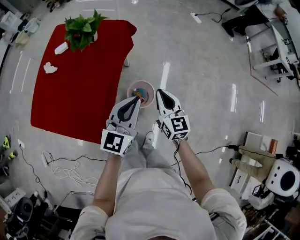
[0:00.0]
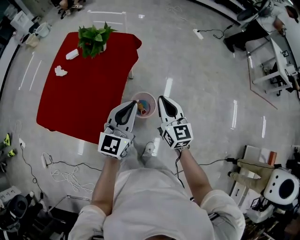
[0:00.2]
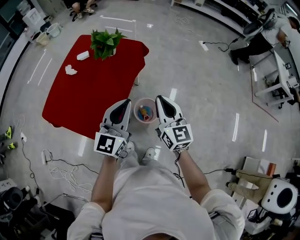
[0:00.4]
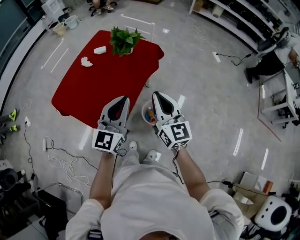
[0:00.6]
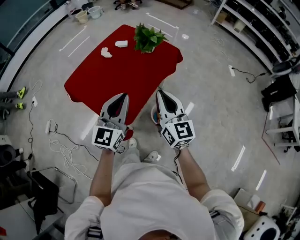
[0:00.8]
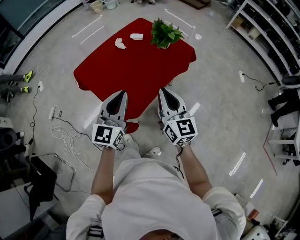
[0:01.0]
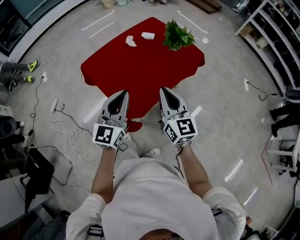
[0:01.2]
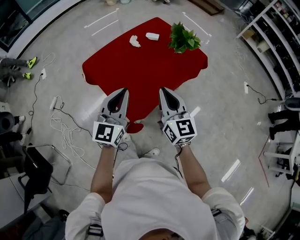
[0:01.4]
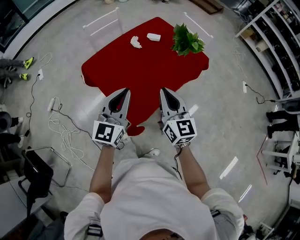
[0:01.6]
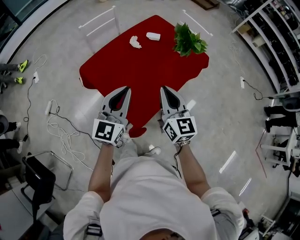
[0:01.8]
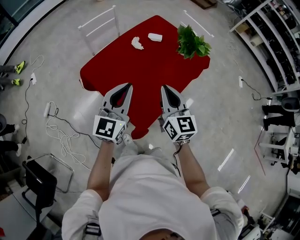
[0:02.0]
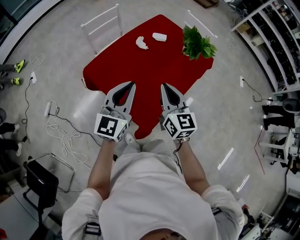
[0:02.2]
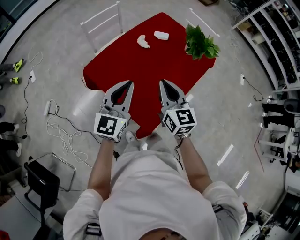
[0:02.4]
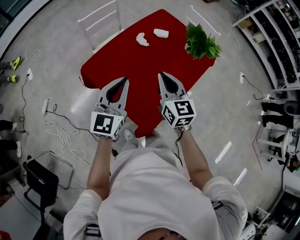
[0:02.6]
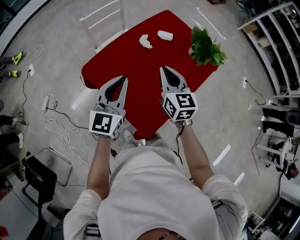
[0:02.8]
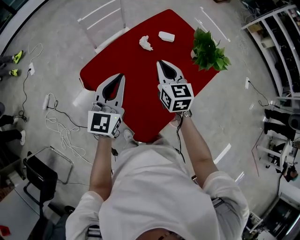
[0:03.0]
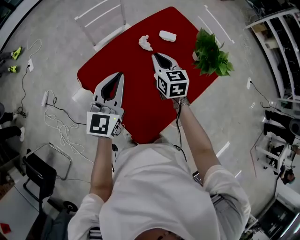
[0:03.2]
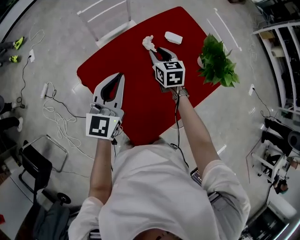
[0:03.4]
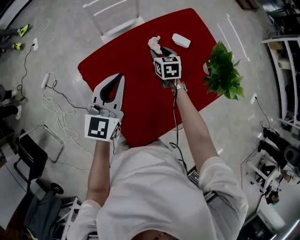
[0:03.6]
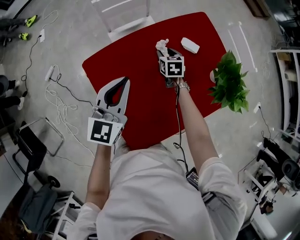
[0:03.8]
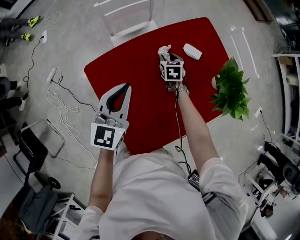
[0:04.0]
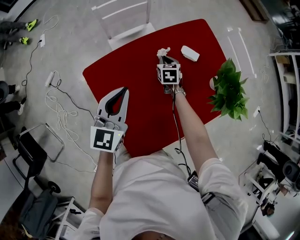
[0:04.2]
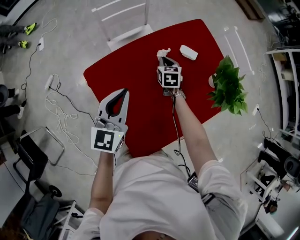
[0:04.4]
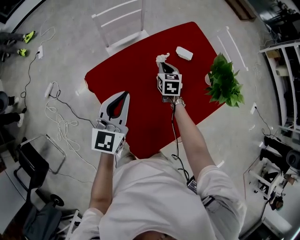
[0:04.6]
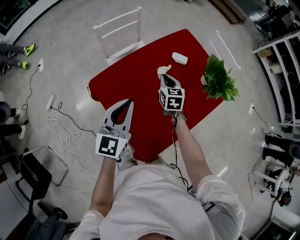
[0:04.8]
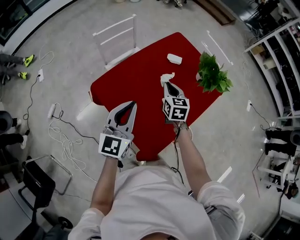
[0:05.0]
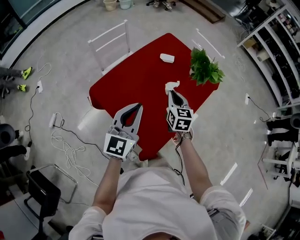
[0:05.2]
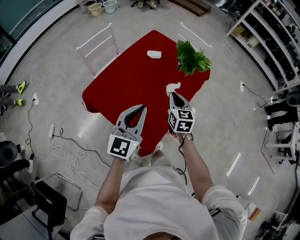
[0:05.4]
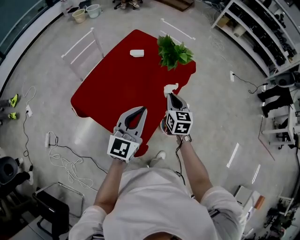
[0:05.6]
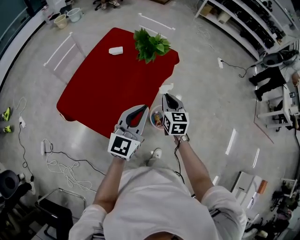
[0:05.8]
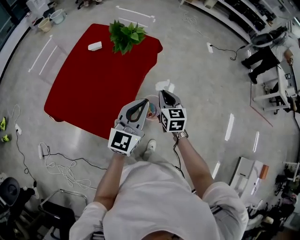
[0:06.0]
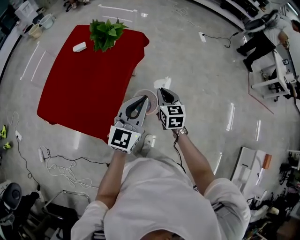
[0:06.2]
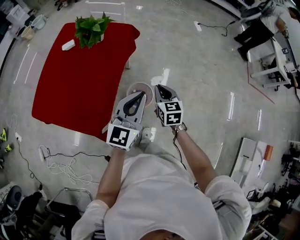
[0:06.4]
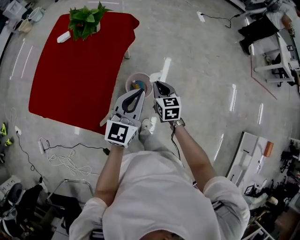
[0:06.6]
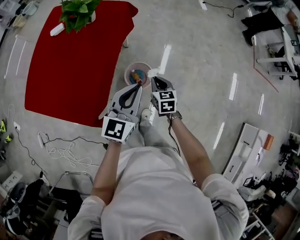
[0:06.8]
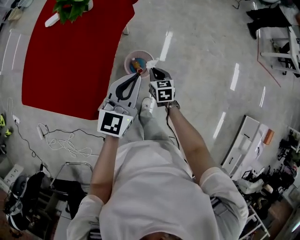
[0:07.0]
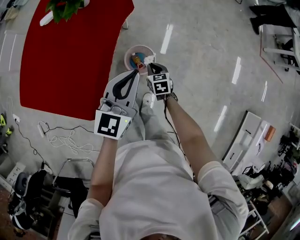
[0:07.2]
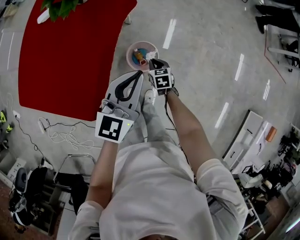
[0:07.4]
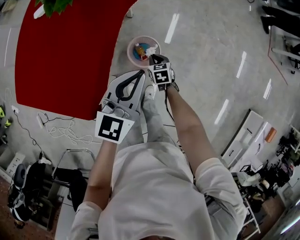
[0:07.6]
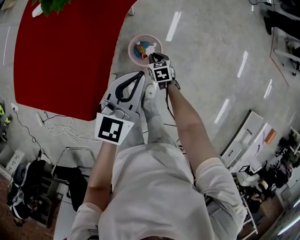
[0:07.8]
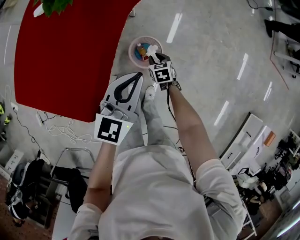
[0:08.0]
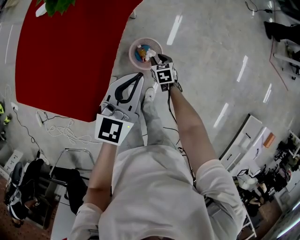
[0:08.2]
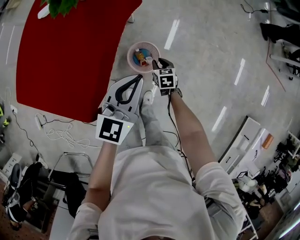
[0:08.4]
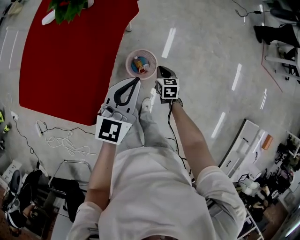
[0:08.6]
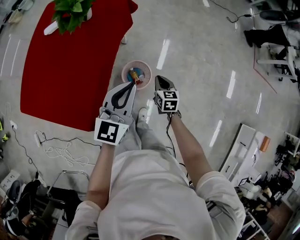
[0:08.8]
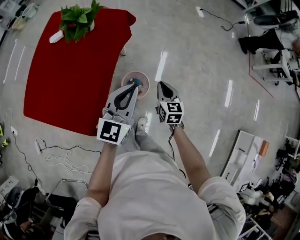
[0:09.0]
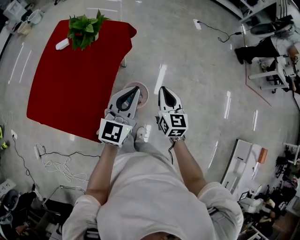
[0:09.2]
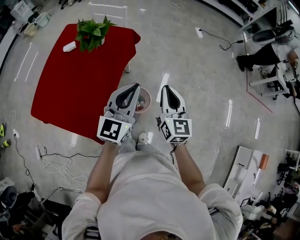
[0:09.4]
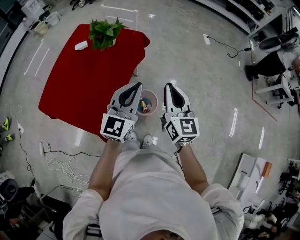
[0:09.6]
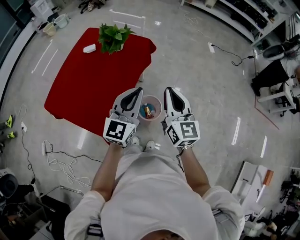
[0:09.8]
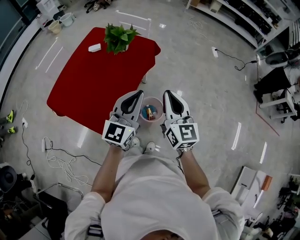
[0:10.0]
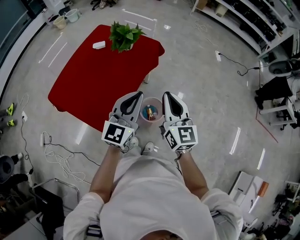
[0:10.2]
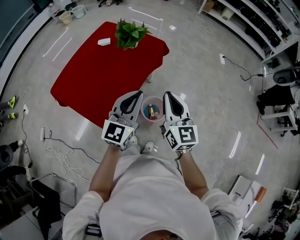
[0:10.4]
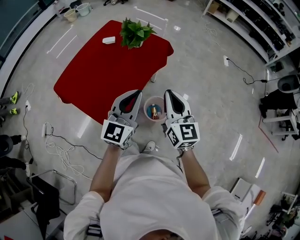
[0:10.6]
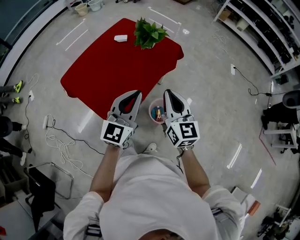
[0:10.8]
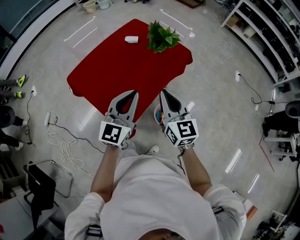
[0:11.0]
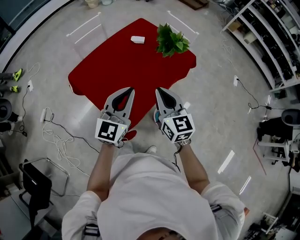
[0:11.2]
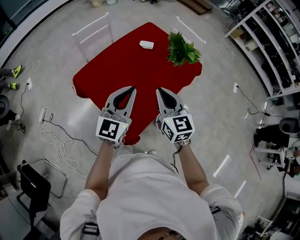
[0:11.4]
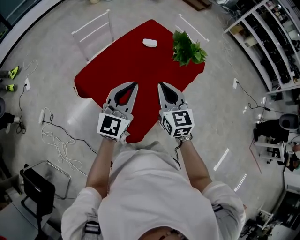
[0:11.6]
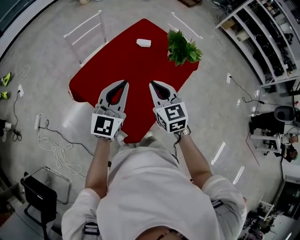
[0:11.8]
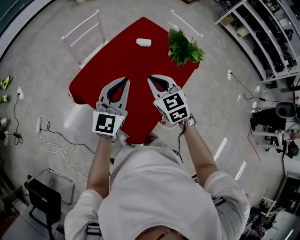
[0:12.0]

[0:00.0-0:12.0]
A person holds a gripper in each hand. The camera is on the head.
0:00.0 to 0:01.6: The left gripper shifts by approximately 35 cm, and turns by approximately 40 degrees. Meanwhile the right gripper shifts by some 35 cm, and rotates some 40 degrees.
0:01.6 to 0:03.0: Both grippers travel together forward and to the left, some 25 cm.
0:03.0 to 0:04.4: The right gripper shifts roughly 30 cm downward and forward, changes its angle by about 20 degrees, and opens, then closes once more, while the left gripper shifts about 10 cm forward and downward.
0:04.4 to 0:06.0: The two grippers travel together, about 50 cm. The left gripper swivels about 50 degrees. Meanwhile the right gripper rotates some 40 degrees.
0:06.0 to 0:07.6: The right gripper moves downward, approximately 35 cm, and rotates approximately 30 degrees, while the left gripper heads downward, to the right and forward, covering roughly 20 cm.
0:07.6 to 0:09.0: The left gripper is displaced upward by roughly 10 cm. Meanwhile the right gripper moves upward, about 25 cm, turns by roughly 30 degrees, and opens, then closes again.
0:09.0 to 0:10.4: The left gripper is displaced upward, to the left and backward by roughly 15 cm; the right gripper moves upward, roughly 25 cm, and swivels approximately 30 degrees.
0:10.4 to 0:12.0: The grippers both shift to the left and forward by about 40 cm. The right gripper swivels some 40 degrees.

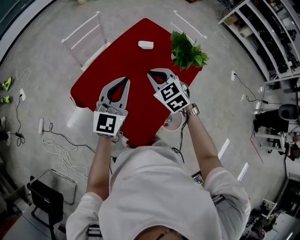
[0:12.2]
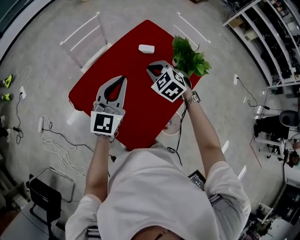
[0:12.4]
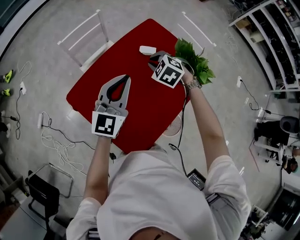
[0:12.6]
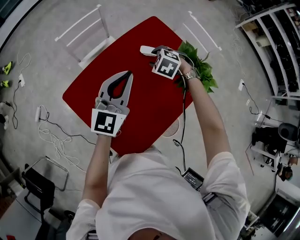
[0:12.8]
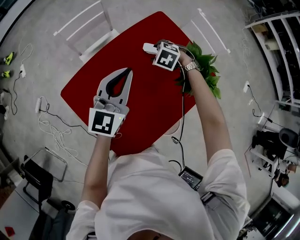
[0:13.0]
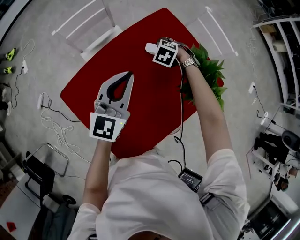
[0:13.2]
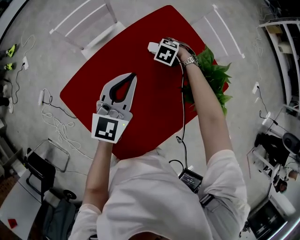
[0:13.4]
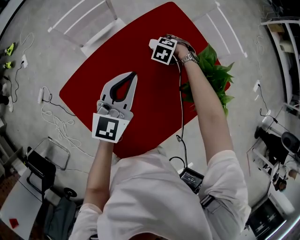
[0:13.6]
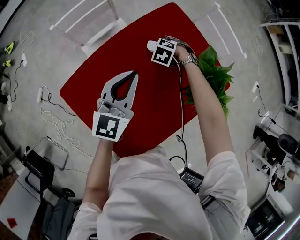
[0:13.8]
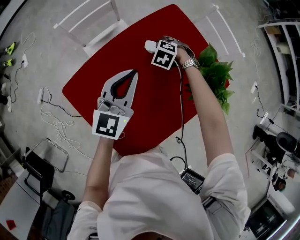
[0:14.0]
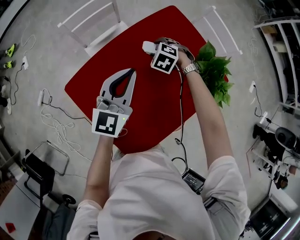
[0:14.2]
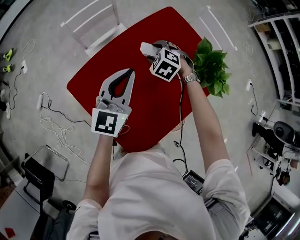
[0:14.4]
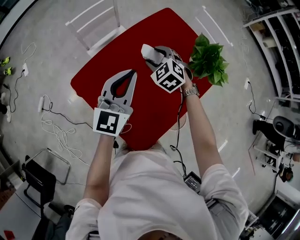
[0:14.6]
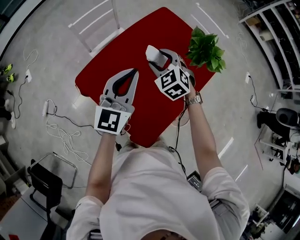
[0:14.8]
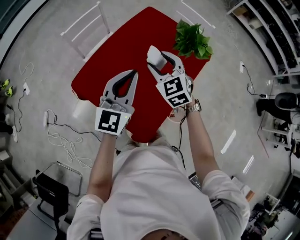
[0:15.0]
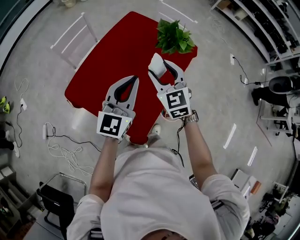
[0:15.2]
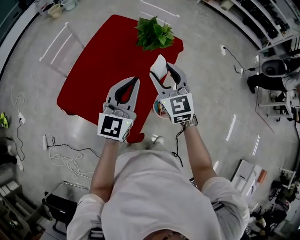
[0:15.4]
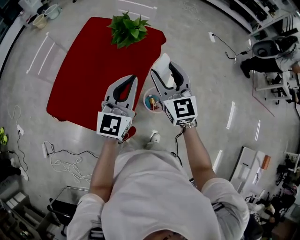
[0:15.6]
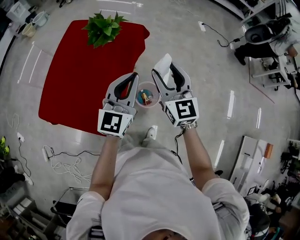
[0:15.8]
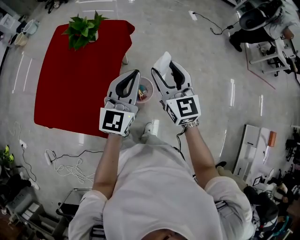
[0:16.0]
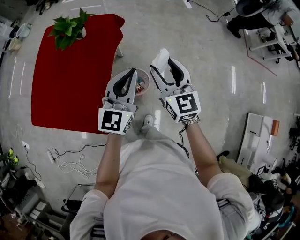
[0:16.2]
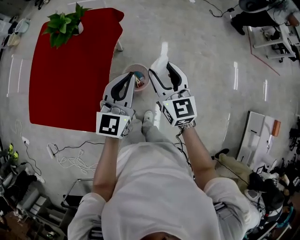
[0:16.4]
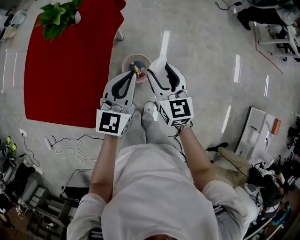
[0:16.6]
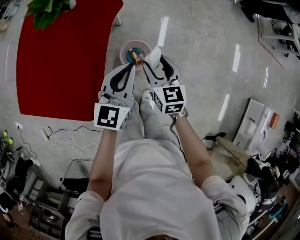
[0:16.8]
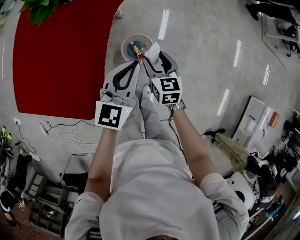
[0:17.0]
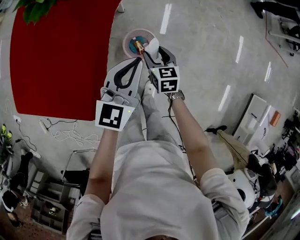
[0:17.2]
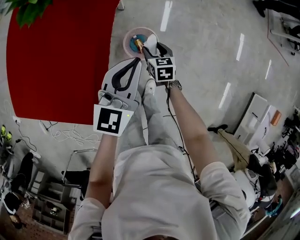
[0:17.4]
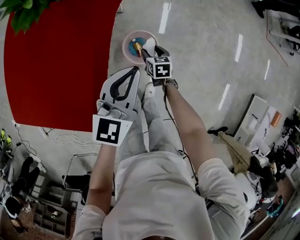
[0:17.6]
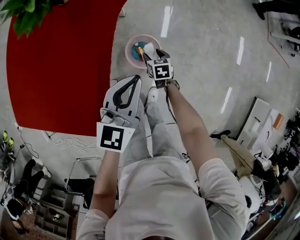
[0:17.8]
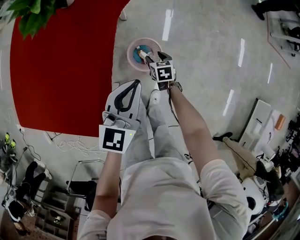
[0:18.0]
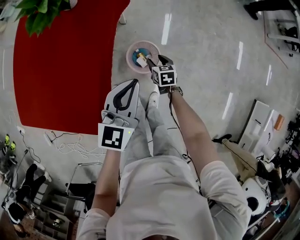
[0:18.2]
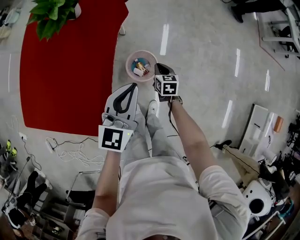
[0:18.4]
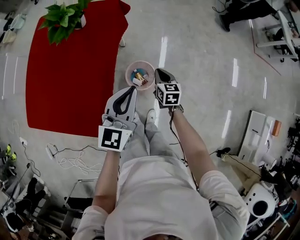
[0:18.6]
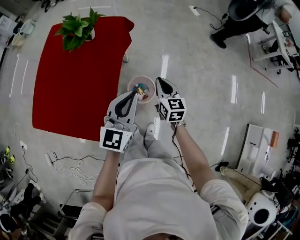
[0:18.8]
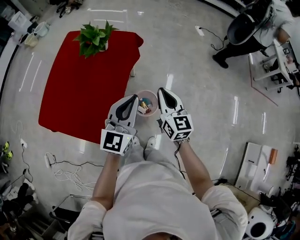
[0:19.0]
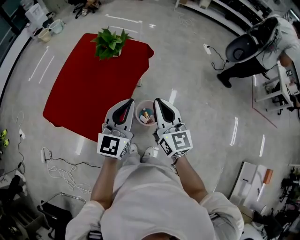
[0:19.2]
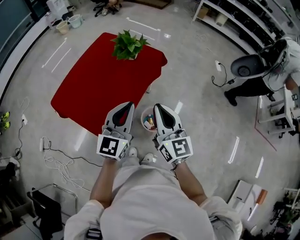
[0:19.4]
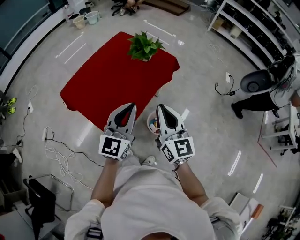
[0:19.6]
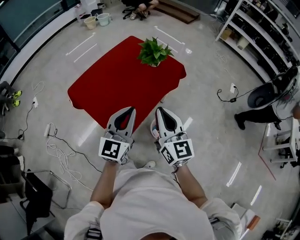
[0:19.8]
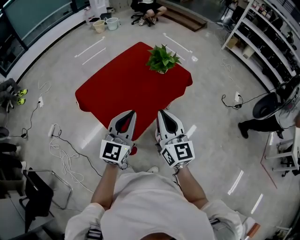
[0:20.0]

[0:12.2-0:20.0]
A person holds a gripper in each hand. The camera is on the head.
0:12.2 to 0:13.8: The right gripper ends up approximately 40 cm from where it was, points its fingers roughly 40 degrees further downward, and opens its fingers, while the left gripper changes place by roughly 25 cm.
0:13.8 to 0:15.4: The left gripper moves some 30 cm, and turns by about 30 degrees; the right gripper ends up about 50 cm from where it was, and tilts its fingers some 70 degrees upward.
0:15.4 to 0:16.8: The grippers both shift to the right and downward by approximately 40 cm. The right gripper turns by roughly 40 degrees; the left gripper swivels some 20 degrees.
0:16.8 to 0:18.4: The right gripper heads downward, covering some 20 cm, swivels some 20 degrees, and closes its fingers; the left gripper goes downward and returns, approximately 10 cm each way.
0:18.4 to 0:20.0: The left gripper shifts by roughly 30 cm, and rotates about 40 degrees, while the right gripper is displaced upward by about 50 cm, and angles its fingers upward, by approximately 50 degrees.

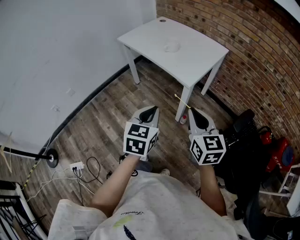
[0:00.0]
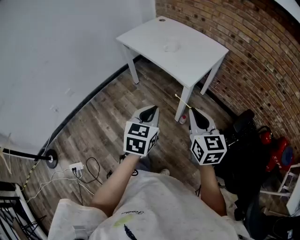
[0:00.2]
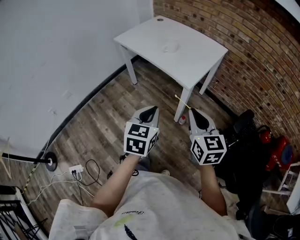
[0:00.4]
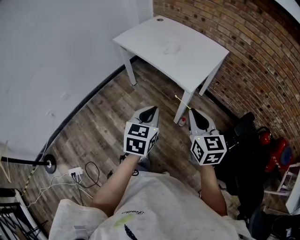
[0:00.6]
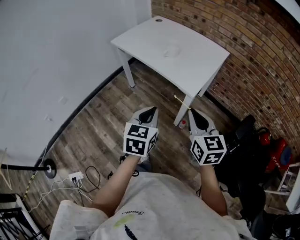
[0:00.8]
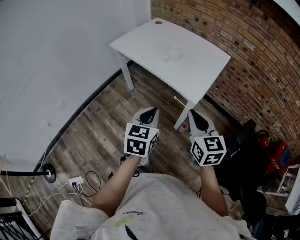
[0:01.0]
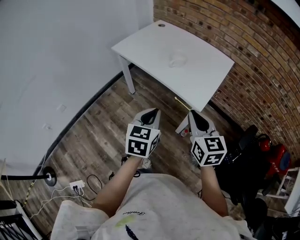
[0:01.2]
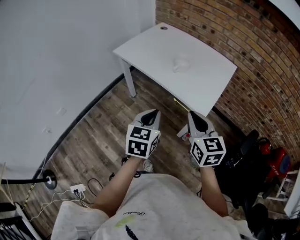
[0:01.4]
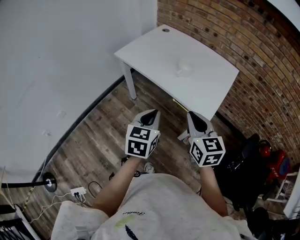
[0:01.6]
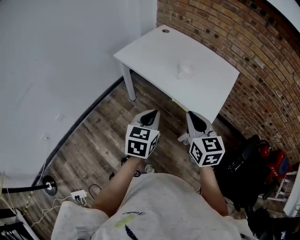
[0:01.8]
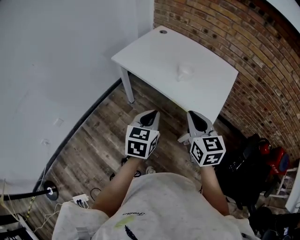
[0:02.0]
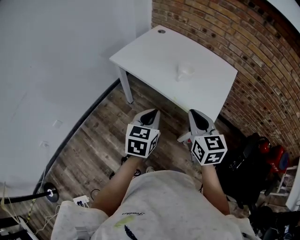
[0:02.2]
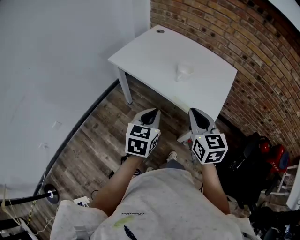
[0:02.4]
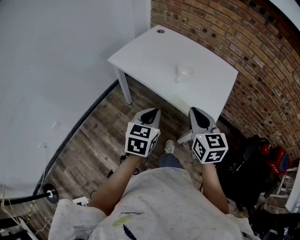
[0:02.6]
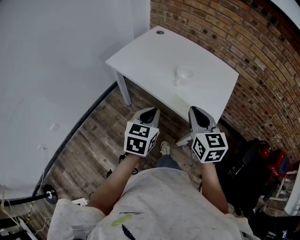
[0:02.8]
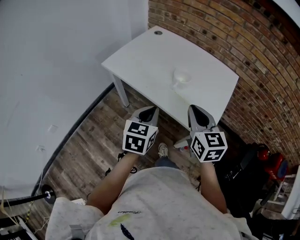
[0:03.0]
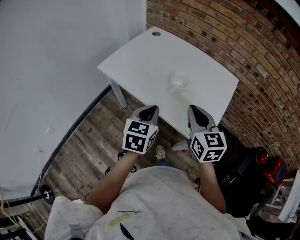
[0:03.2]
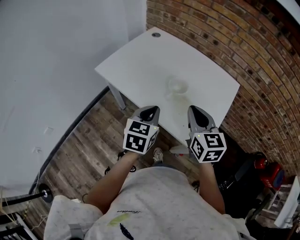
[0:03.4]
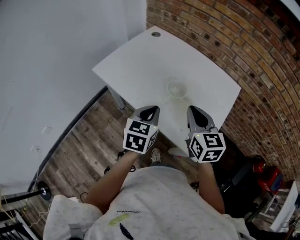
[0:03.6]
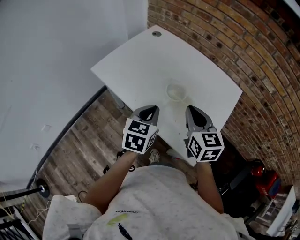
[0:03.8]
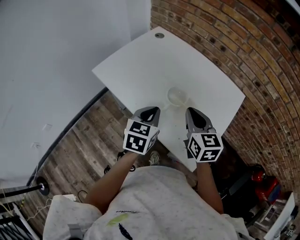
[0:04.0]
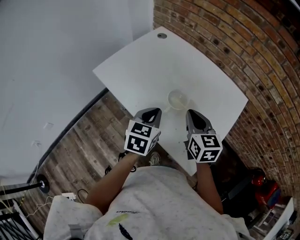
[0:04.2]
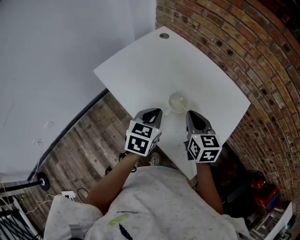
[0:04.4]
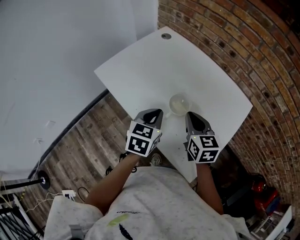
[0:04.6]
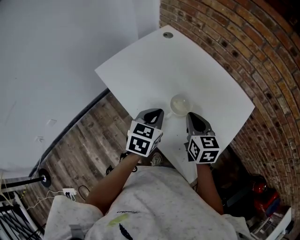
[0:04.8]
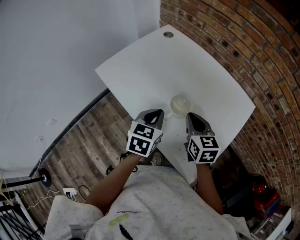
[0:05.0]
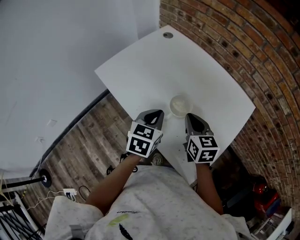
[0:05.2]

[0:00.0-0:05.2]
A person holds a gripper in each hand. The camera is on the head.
0:00.0 to 0:01.8: The grippers both shift forward and to the left by some 30 cm.
0:01.8 to 0:03.4: Both grippers move forward, roughly 20 cm.
0:03.4 to 0:05.2: The right gripper travels forward and downward by about 15 cm, while the left gripper moves forward, roughly 10 cm.
